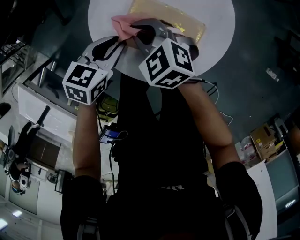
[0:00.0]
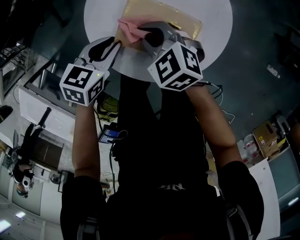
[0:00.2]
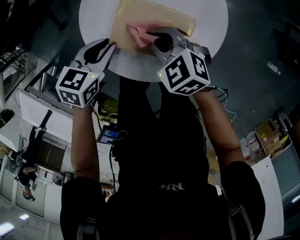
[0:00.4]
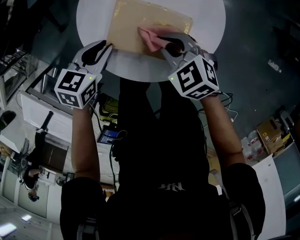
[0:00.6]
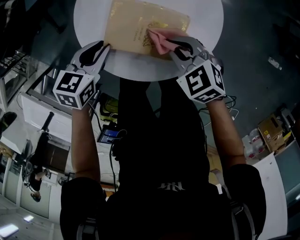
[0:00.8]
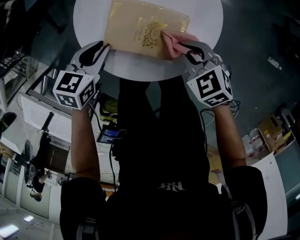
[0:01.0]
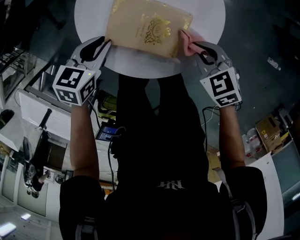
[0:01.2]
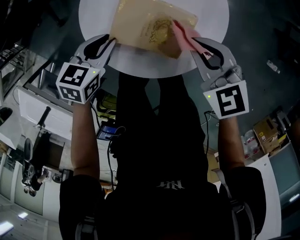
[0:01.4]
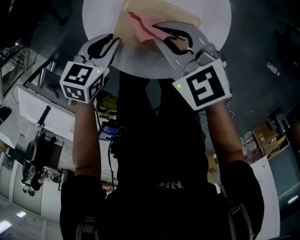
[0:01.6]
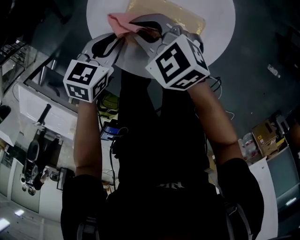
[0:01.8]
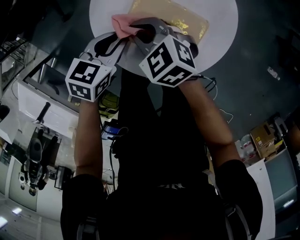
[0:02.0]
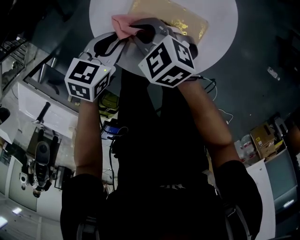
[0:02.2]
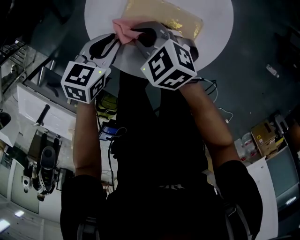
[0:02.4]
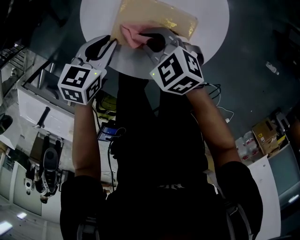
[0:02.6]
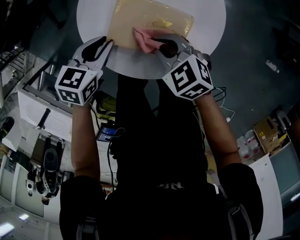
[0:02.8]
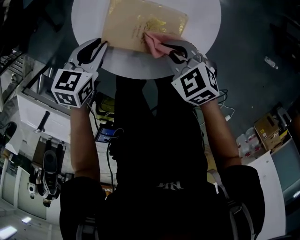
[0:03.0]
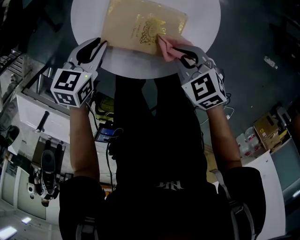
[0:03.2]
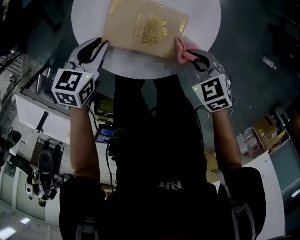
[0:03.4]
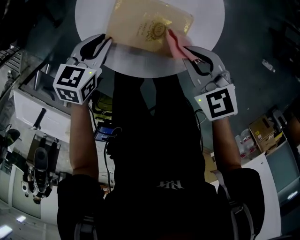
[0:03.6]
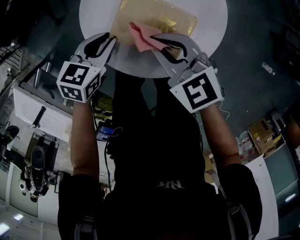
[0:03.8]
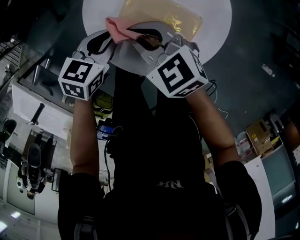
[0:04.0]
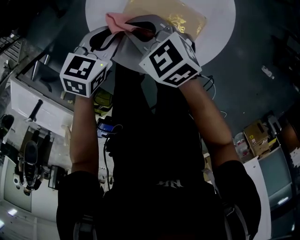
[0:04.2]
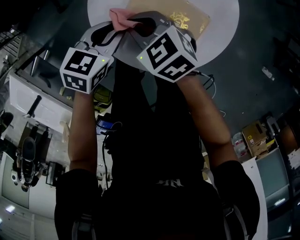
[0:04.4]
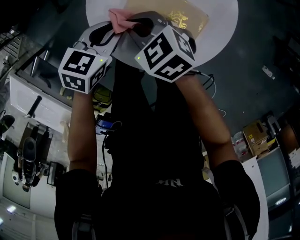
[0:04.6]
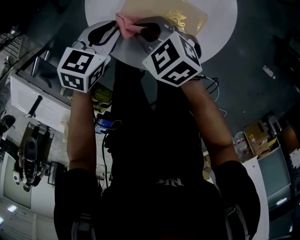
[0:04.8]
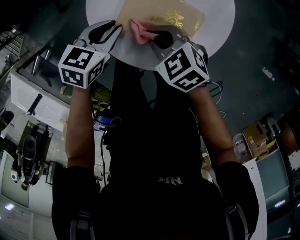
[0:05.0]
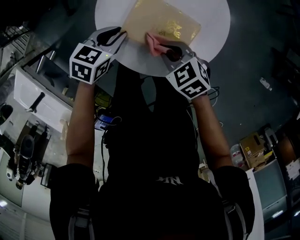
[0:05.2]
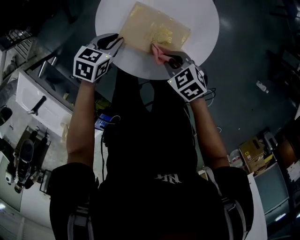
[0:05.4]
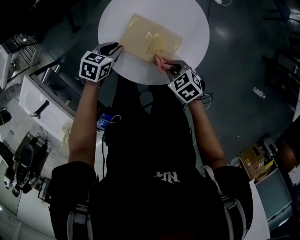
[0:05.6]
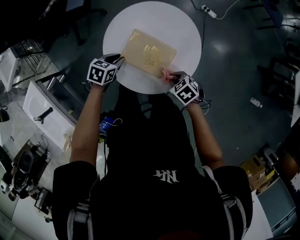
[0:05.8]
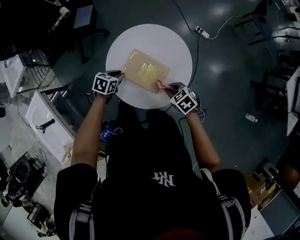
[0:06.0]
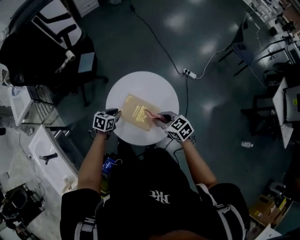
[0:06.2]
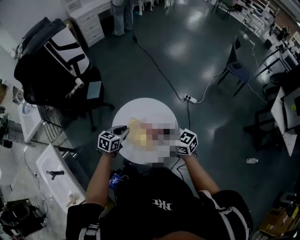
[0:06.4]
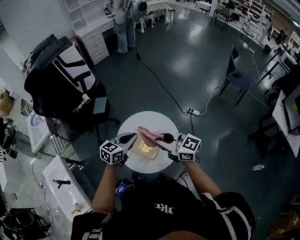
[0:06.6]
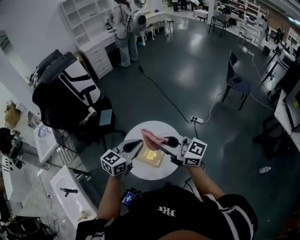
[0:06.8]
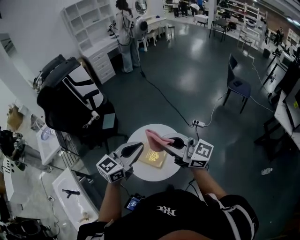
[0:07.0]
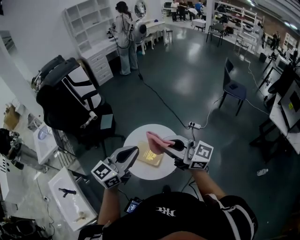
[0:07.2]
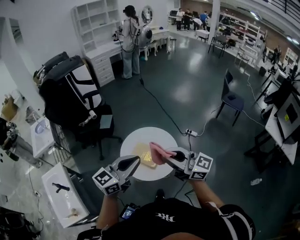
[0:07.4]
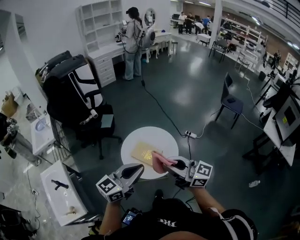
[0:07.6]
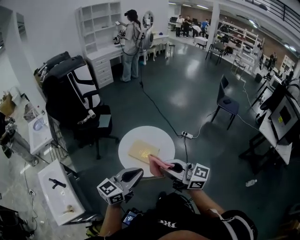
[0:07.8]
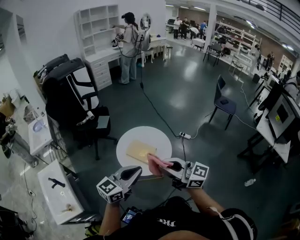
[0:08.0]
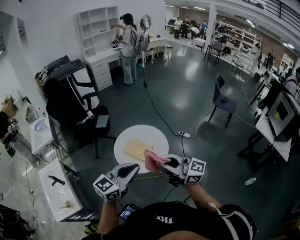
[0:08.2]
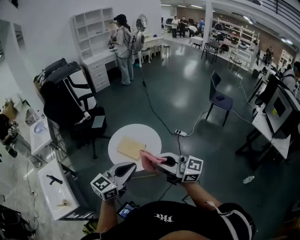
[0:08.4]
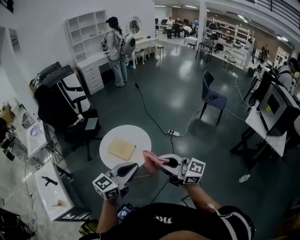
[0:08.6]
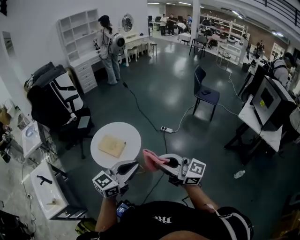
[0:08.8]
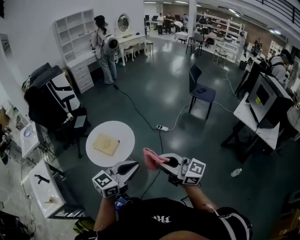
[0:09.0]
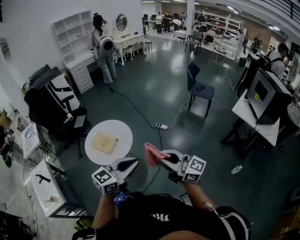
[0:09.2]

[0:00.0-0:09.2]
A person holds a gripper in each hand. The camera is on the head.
0:00.0 to 0:01.6: The right gripper is displaced upward and to the right by some 10 cm.
0:01.6 to 0:03.0: The right gripper is displaced downward and backward by some 10 cm.
0:03.0 to 0:04.6: The right gripper moves to the left, about 15 cm.
0:04.6 to 0:06.2: The left gripper heads upward, covering some 10 cm, while the right gripper shifts approximately 25 cm upward, to the right and backward.
0:06.2 to 0:07.6: Both grippers travel together upward and backward, about 50 cm. The left gripper angles its fingers upward, by some 50 degrees. Meanwhile the right gripper points its fingers about 50 degrees further upward.
0:07.6 to 0:09.2: The pair of grippers is taken to the right and backward, roughly 40 cm.

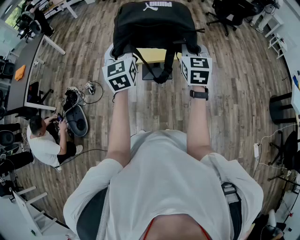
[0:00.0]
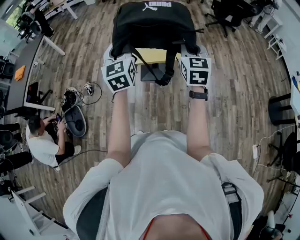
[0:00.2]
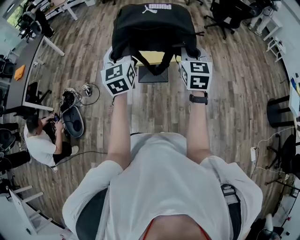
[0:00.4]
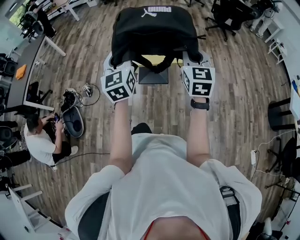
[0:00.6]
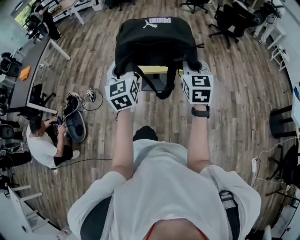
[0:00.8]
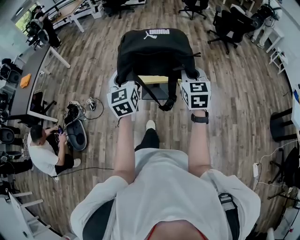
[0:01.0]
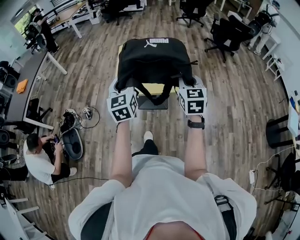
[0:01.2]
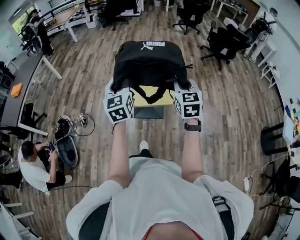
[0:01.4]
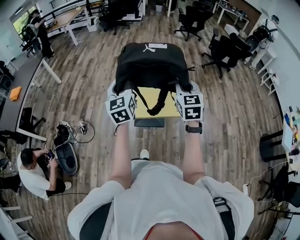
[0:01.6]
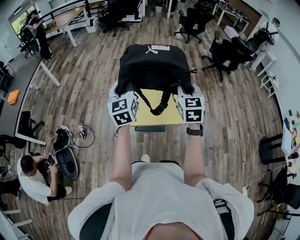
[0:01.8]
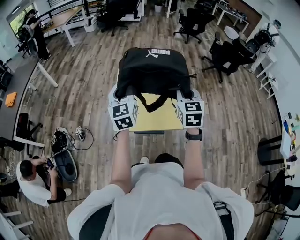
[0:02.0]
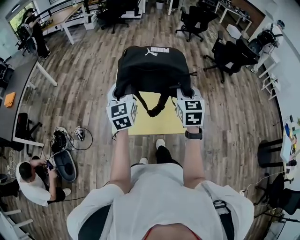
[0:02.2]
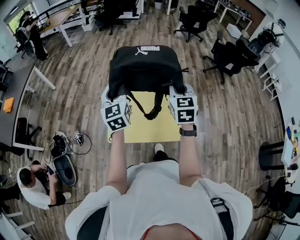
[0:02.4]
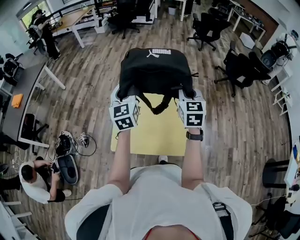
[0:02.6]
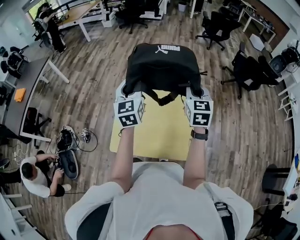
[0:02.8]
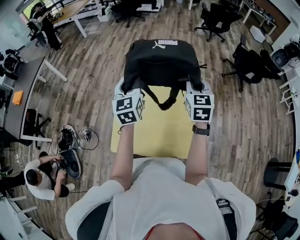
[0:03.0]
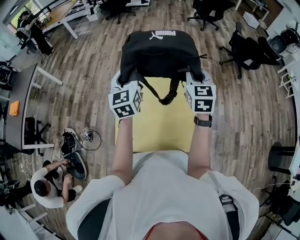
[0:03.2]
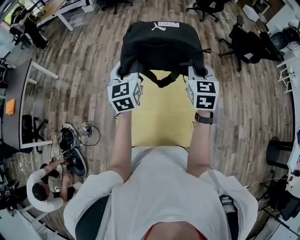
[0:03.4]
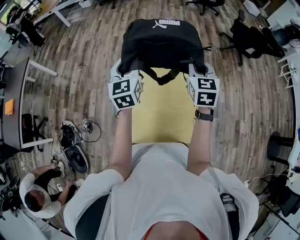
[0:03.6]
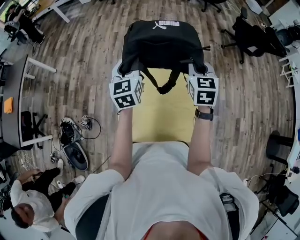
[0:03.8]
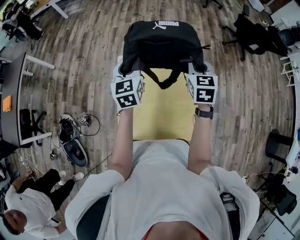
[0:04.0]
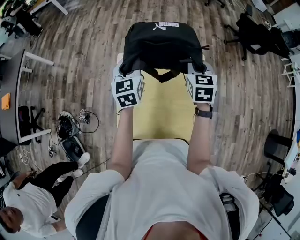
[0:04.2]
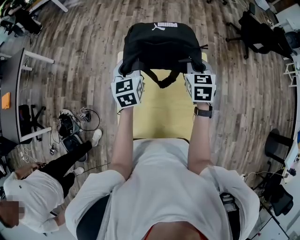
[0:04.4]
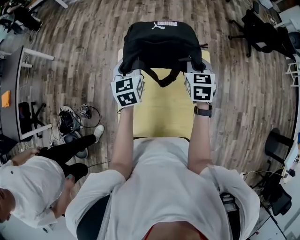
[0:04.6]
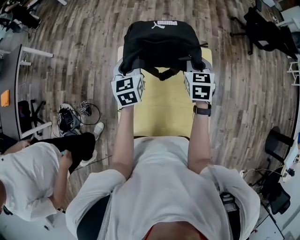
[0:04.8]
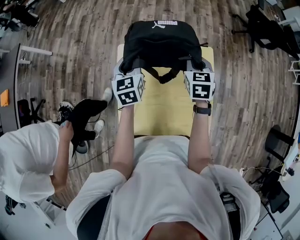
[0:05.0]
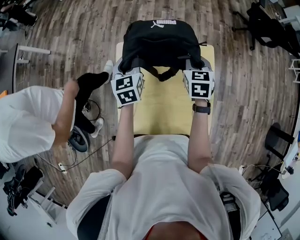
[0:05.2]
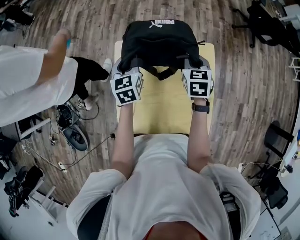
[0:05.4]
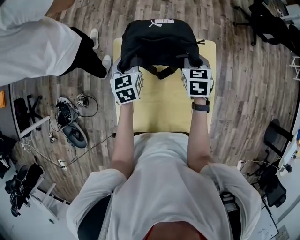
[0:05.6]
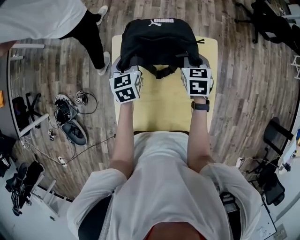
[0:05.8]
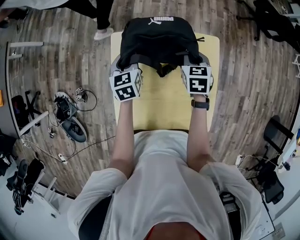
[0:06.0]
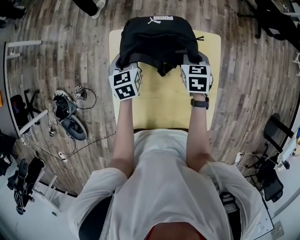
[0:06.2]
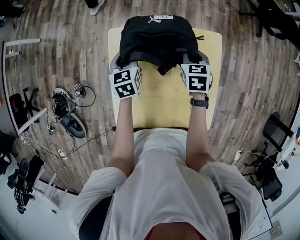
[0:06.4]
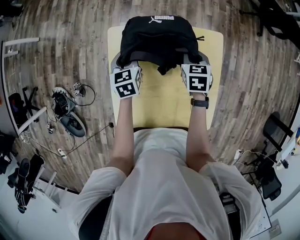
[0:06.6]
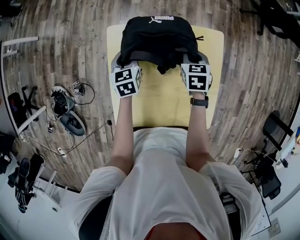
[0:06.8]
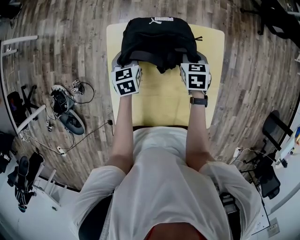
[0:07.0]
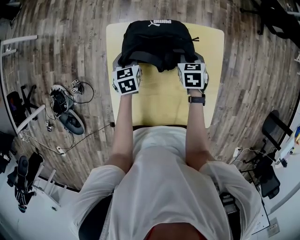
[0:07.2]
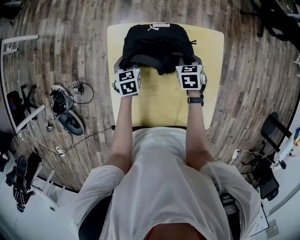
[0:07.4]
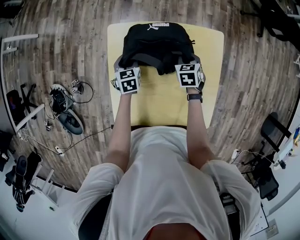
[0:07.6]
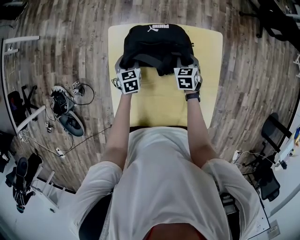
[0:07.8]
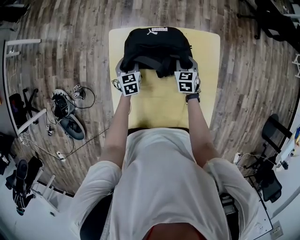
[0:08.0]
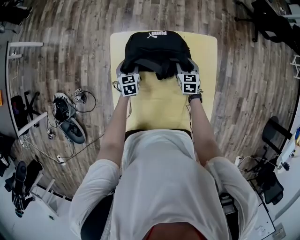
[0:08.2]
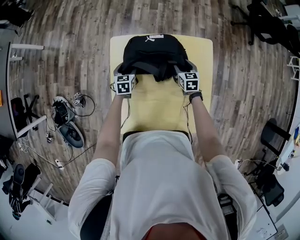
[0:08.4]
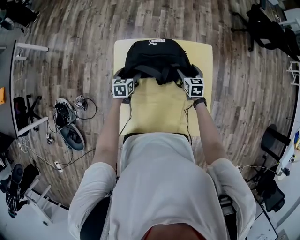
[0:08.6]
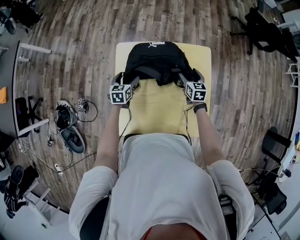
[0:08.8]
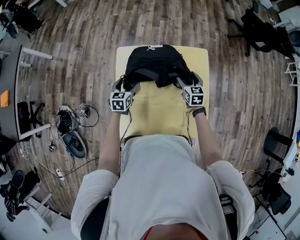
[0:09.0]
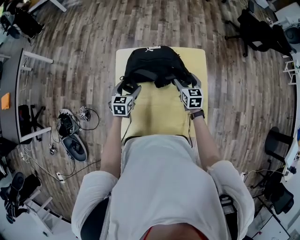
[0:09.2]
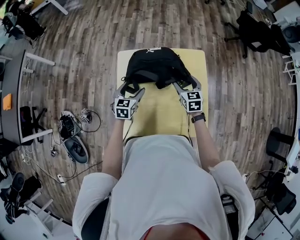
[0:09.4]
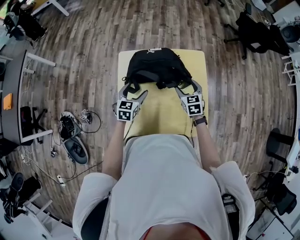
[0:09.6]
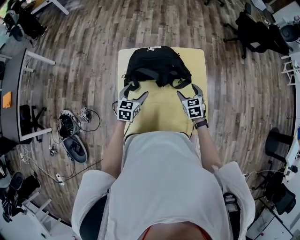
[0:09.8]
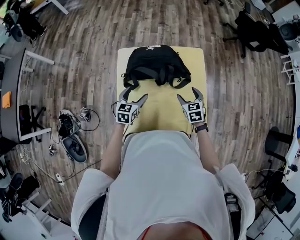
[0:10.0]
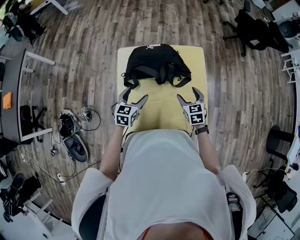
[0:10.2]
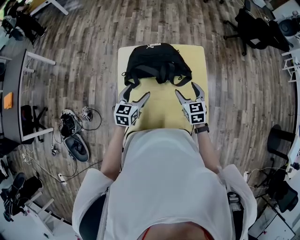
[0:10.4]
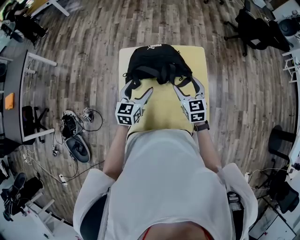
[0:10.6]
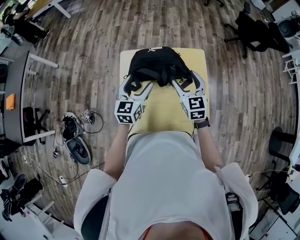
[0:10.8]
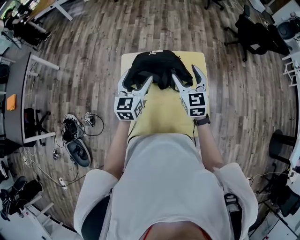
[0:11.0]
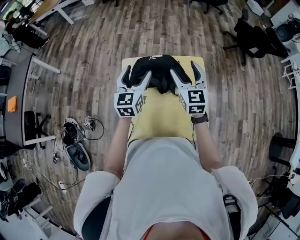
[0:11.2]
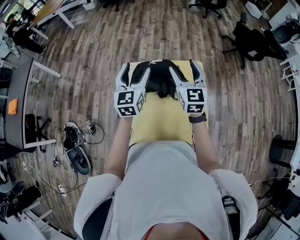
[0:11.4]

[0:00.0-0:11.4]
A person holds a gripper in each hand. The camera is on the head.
0:00.0 to 0:01.4: The grippers both shift forward by approximately 10 cm.
0:01.4 to 0:02.8: Both grippers travel together forward, about 40 cm.
0:02.8 to 0:04.2: The right gripper shifts about 15 cm downward, forward and to the left. Meanwhile the left gripper moves forward and downward, about 20 cm.
0:04.2 to 0:05.6: The left gripper travels downward by about 15 cm. The right gripper moves downward and forward, approximately 15 cm.
0:05.6 to 0:07.2: The two grippers go roughly 15 cm downward.
0:07.2 to 0:08.6: The right gripper ends up some 5 cm from where it was, and opens up; the left gripper changes place by roughly 5 cm, and opens.
0:08.6 to 0:10.0: The grippers both shift backward and upward by about 20 cm.
0:10.0 to 0:11.4: The two grippers go roughly 25 cm upward. The left gripper swivels roughly 30 degrees, while the right gripper angles its fingers upward, by approximately 40 degrees.

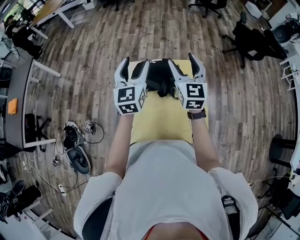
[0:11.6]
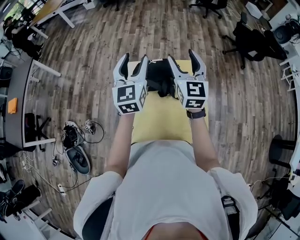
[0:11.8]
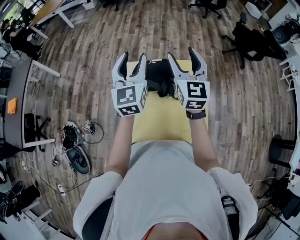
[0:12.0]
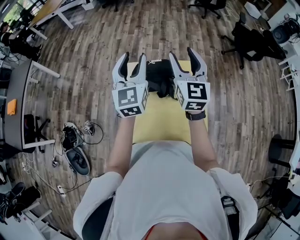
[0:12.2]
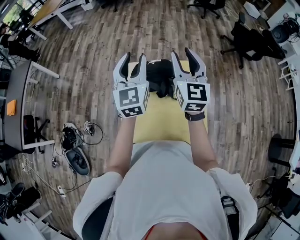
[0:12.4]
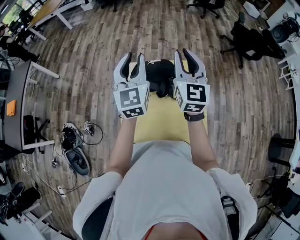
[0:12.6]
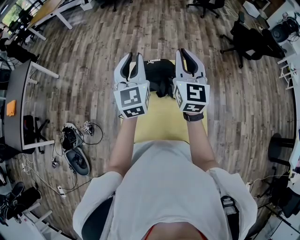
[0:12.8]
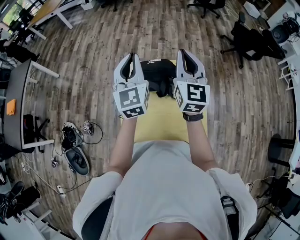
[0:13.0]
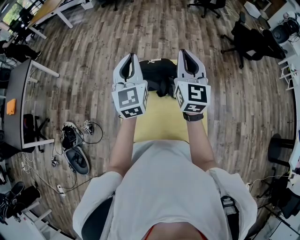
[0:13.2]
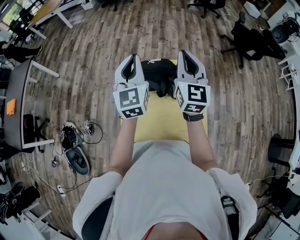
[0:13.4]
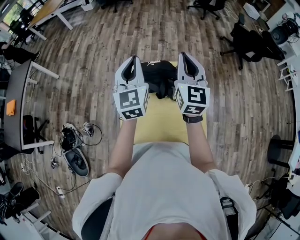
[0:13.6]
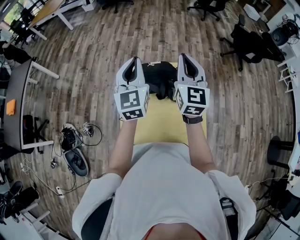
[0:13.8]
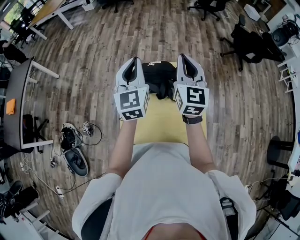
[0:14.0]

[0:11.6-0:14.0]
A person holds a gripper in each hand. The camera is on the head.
0:11.6 to 0:12.8: Both grippers travel together upward, about 5 cm. The left gripper closes up. The right gripper closes up.
0:12.8 to 0:14.0: The grippers make only small movements.
